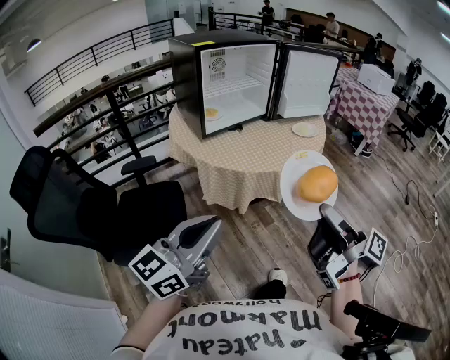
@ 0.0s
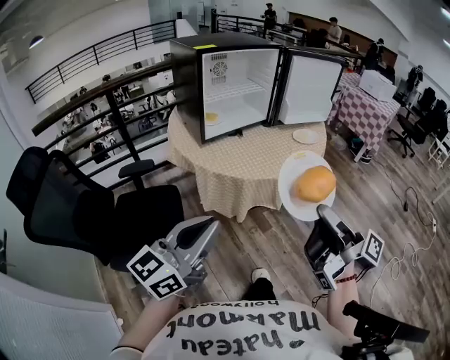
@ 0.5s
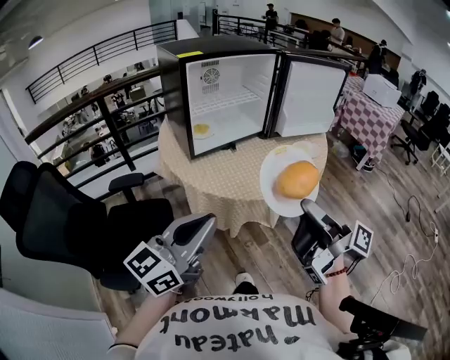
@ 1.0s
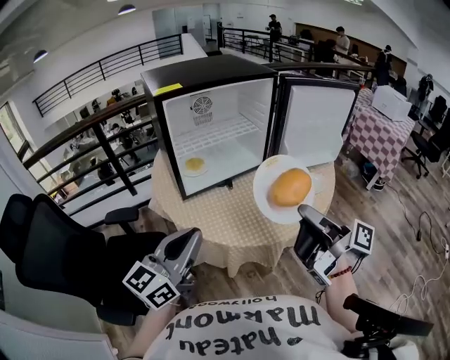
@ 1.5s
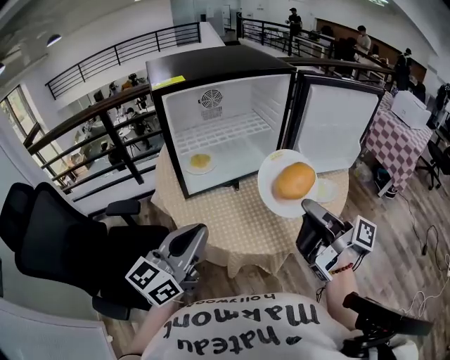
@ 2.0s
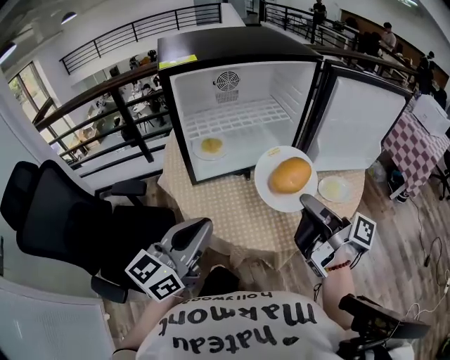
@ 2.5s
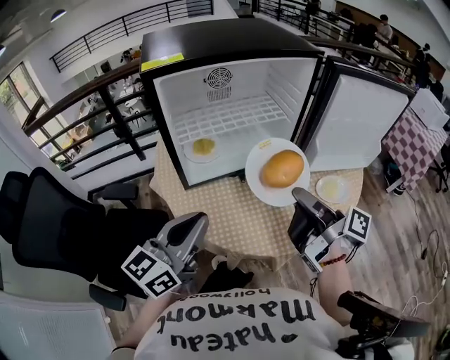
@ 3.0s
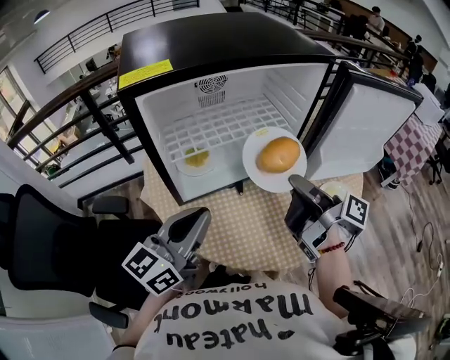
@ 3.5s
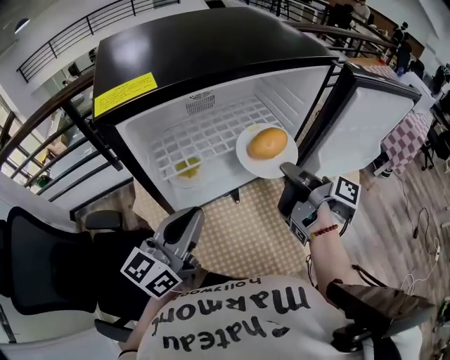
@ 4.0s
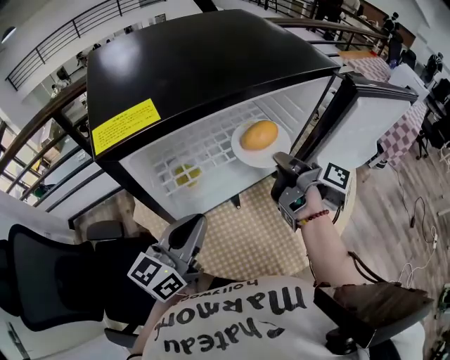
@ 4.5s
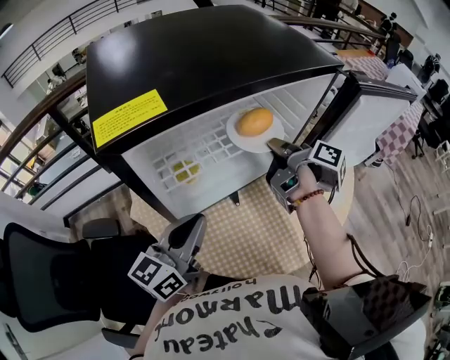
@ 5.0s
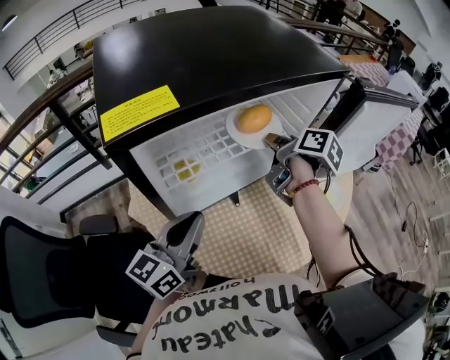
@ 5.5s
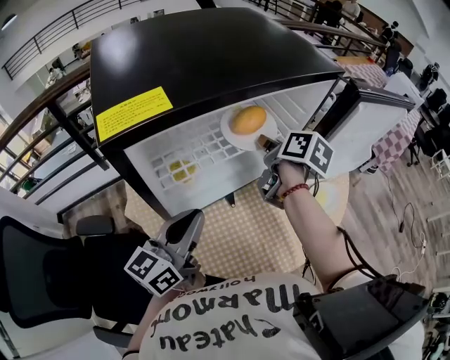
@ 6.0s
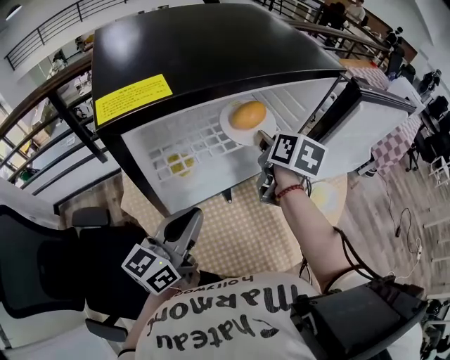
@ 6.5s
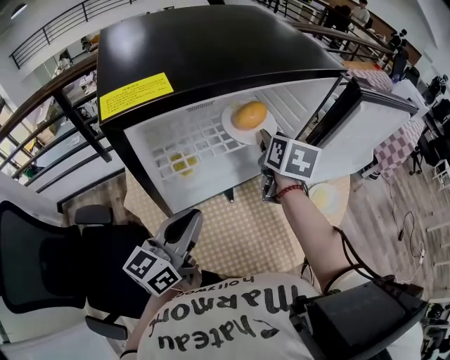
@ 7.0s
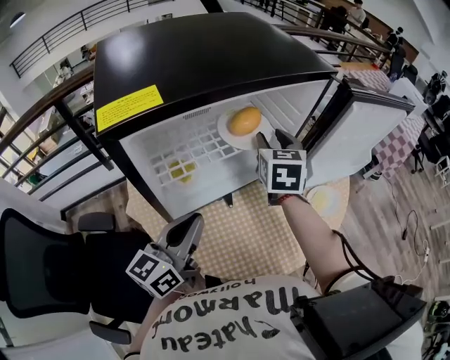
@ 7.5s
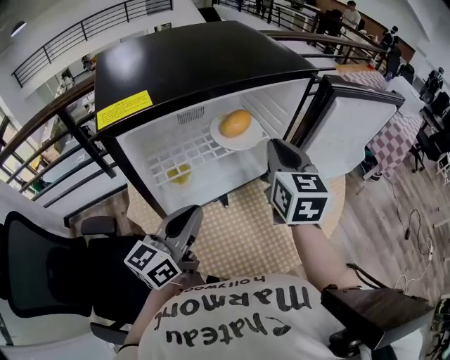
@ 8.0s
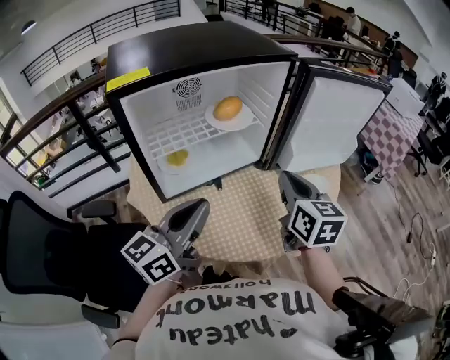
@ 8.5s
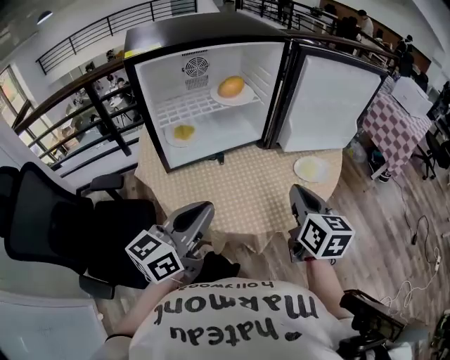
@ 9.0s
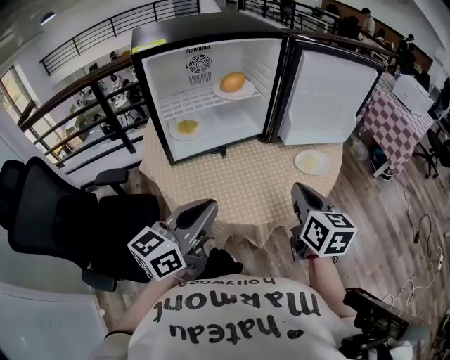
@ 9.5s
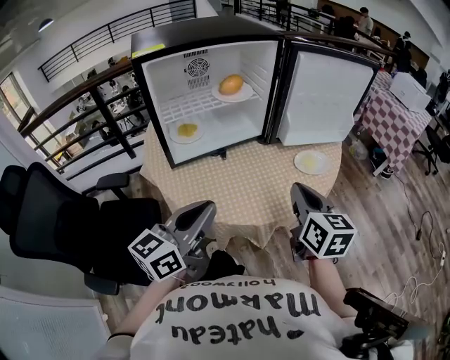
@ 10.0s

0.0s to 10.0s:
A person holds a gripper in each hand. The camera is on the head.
0.0s to 2.0s: The two grippers go some 35 cm forward.
2.0s to 4.0s: The grippers both shift forward by about 20 cm. The right gripper rotates about 20 degrees.
4.0s to 6.0s: The right gripper shifts roughly 10 cm forward, and swivels some 40 degrees.
6.0s to 8.0s: The right gripper is displaced upward and backward by about 10 cm, and rotates around the line of its fingers by roughly 50 degrees, counterclockwise from behind.
8.0s to 10.0s: Both grippers travel together backward and to the right, about 25 cm.

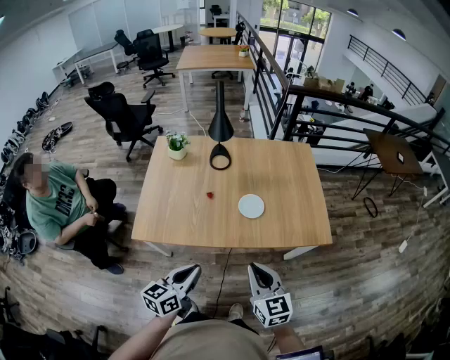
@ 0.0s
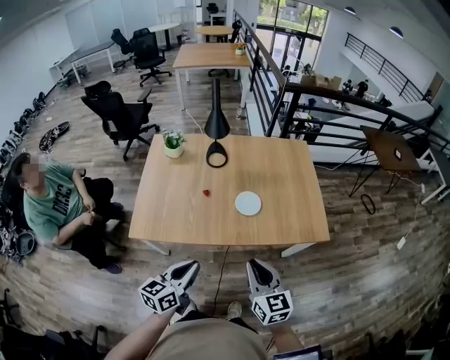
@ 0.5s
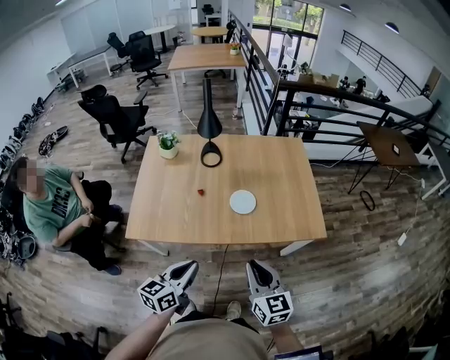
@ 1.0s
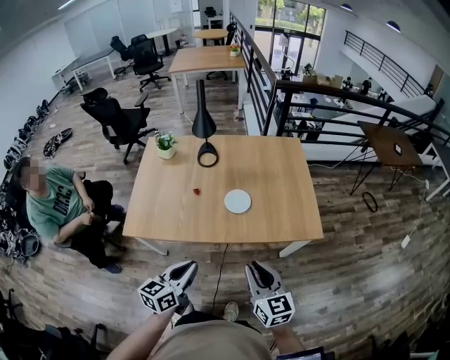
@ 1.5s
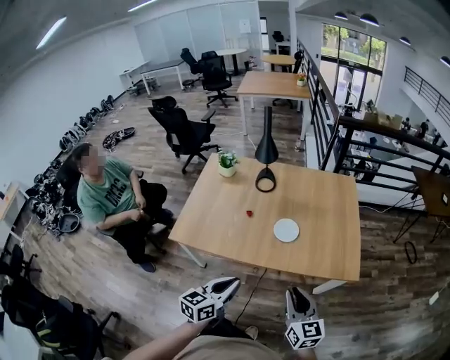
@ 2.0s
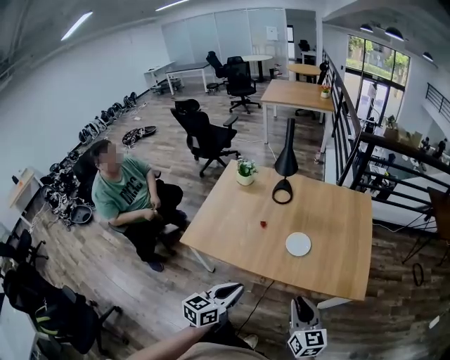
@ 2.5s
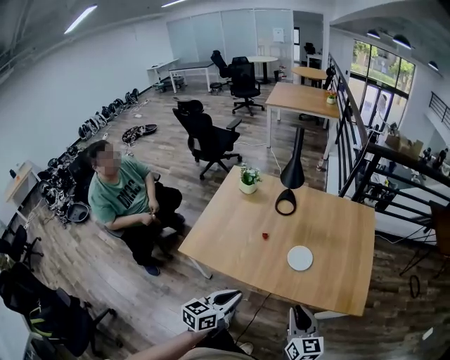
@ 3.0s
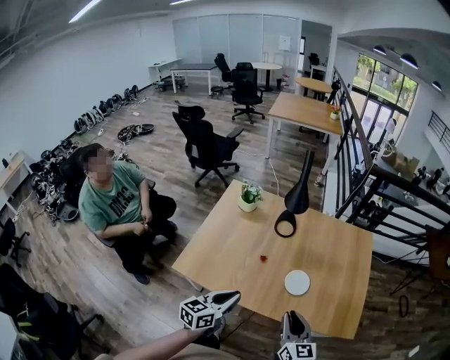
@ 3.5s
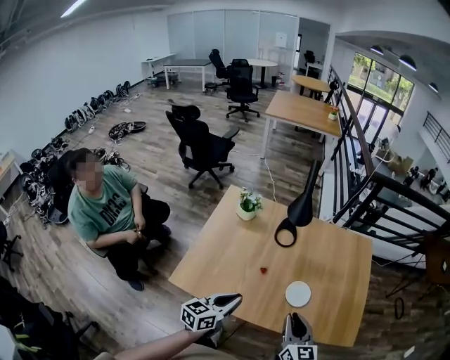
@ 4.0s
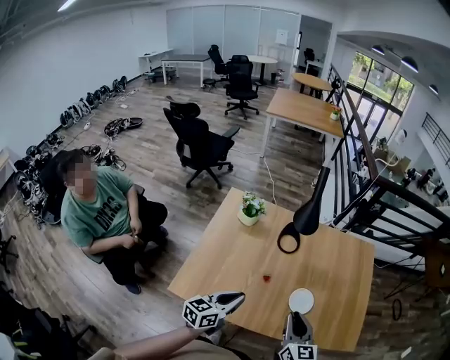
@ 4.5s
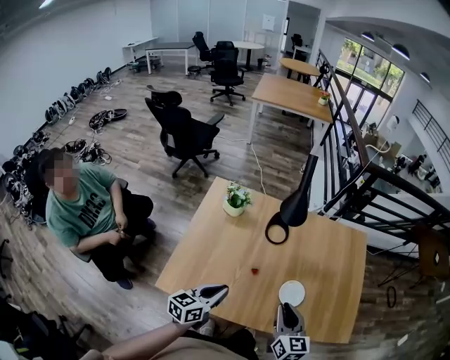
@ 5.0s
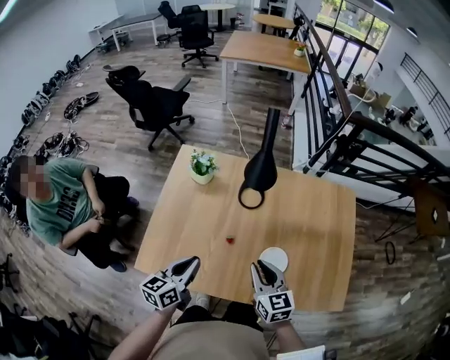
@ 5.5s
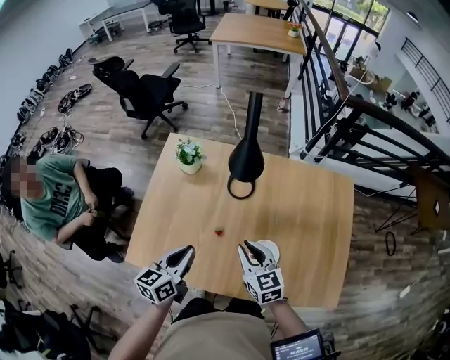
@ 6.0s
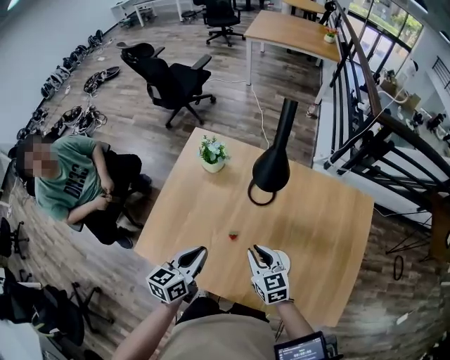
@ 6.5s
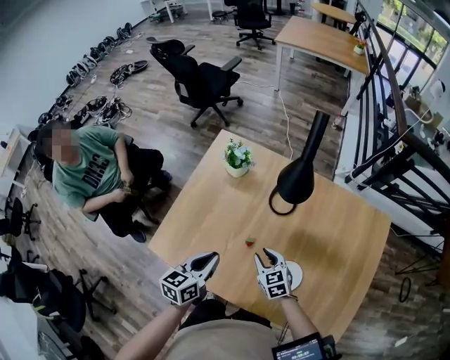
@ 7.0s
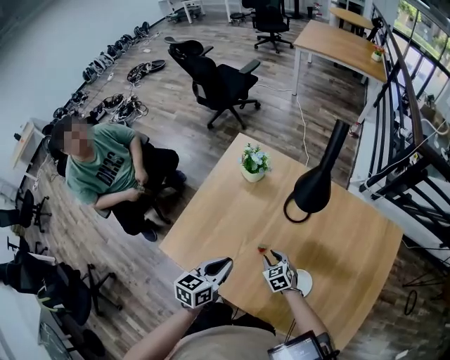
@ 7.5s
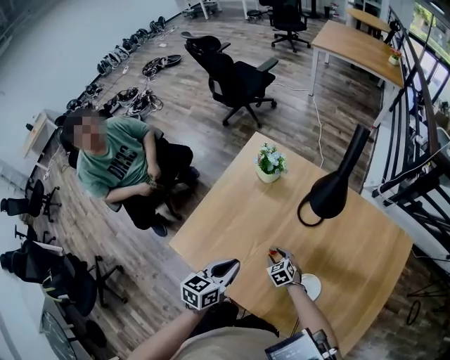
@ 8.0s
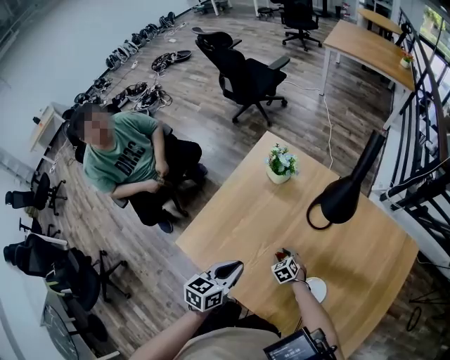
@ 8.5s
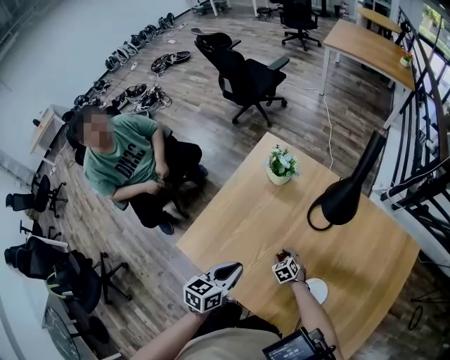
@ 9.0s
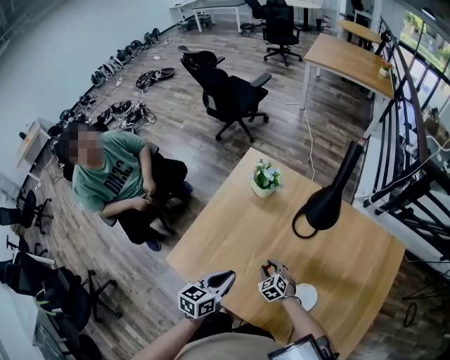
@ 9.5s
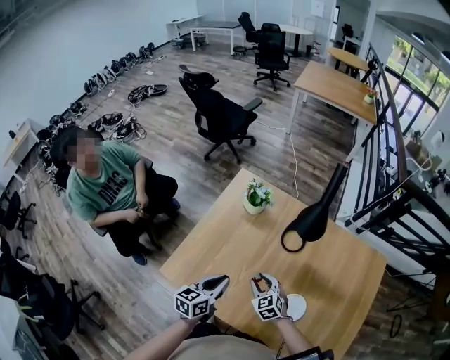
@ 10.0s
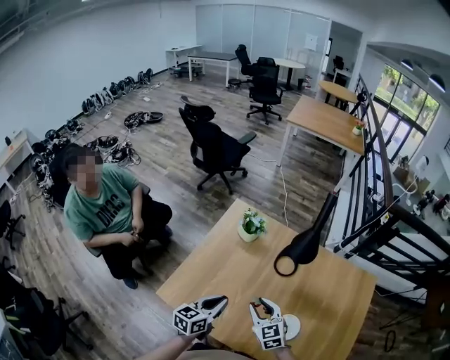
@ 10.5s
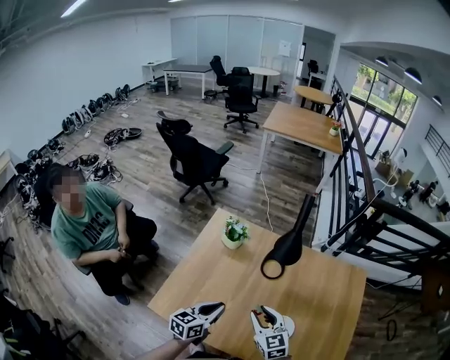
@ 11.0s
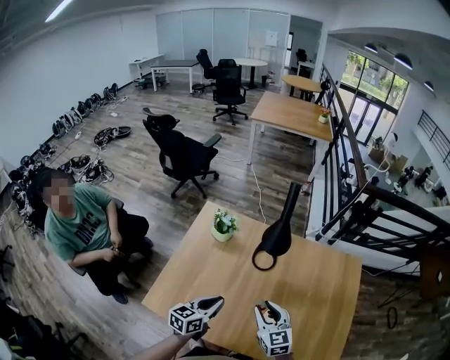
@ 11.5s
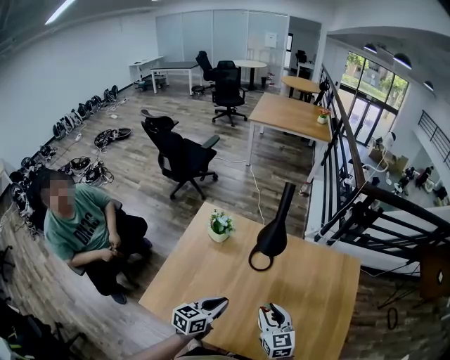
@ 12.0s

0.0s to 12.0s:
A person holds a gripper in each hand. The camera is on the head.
0.0s to 2.0s: Both grippers travel together to the right, roughly 10 cm.
2.0s to 4.0s: The two grippers go roughly 25 cm forward and to the left.
4.0s to 6.0s: Both grippers move forward, some 20 cm.
6.0s to 8.0s: The left gripper moves downward, about 5 cm. Meanwhile the right gripper goes about 30 cm downward, angles its fingers downward, by about 30 degrees, and opens its fingers.
8.0s to 10.0s: The right gripper heads upward, covering approximately 15 cm.
10.0s to 12.0s: The right gripper moves upward and to the right, roughly 20 cm, and rotates roughly 30 degrees, while the left gripper shifts roughly 10 cm to the right.

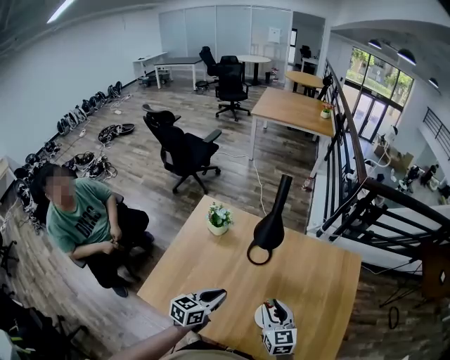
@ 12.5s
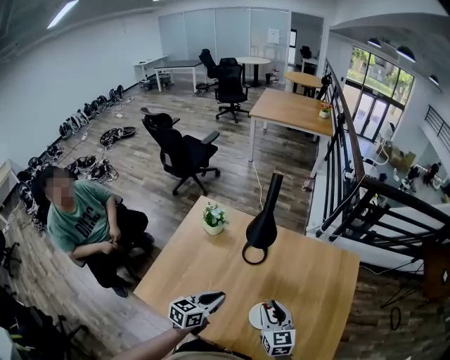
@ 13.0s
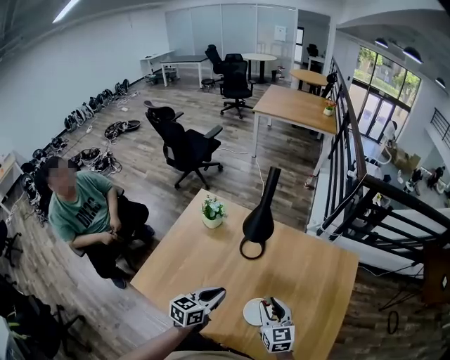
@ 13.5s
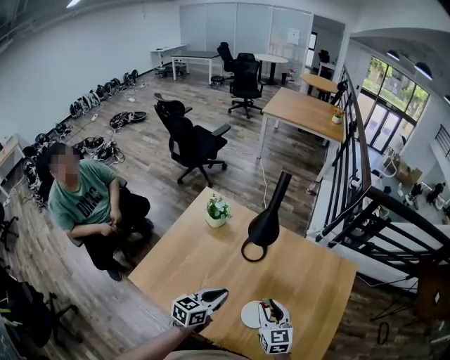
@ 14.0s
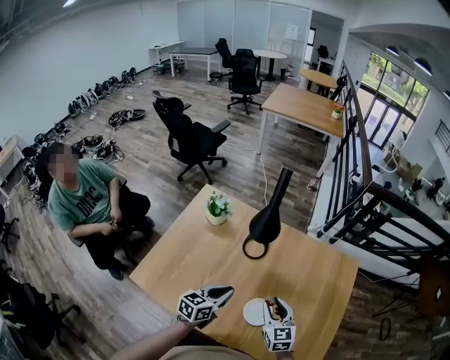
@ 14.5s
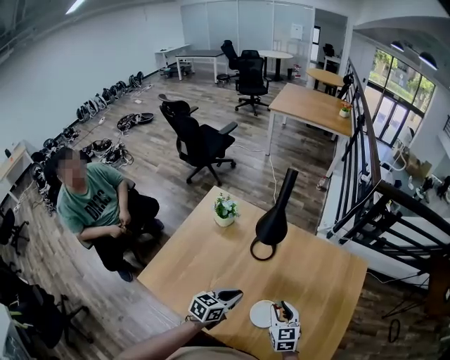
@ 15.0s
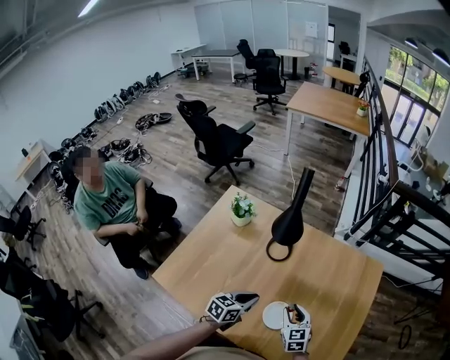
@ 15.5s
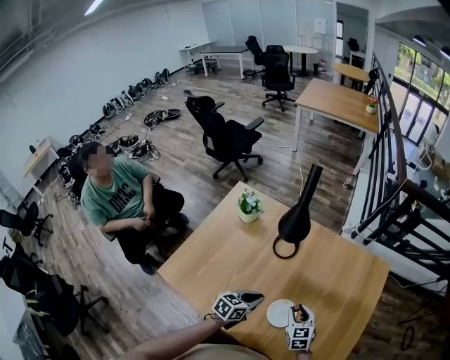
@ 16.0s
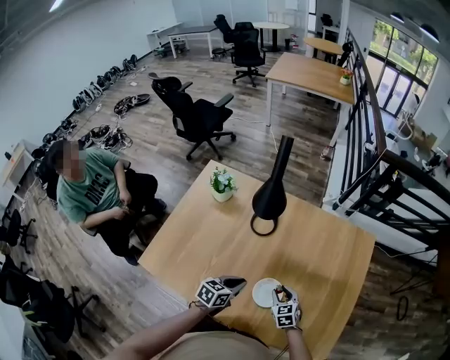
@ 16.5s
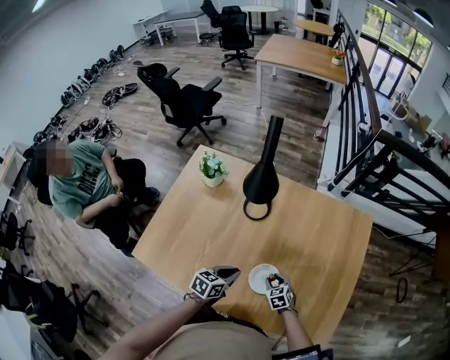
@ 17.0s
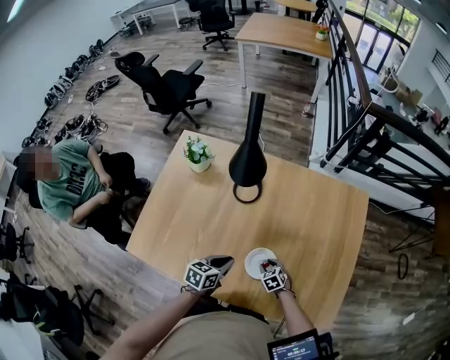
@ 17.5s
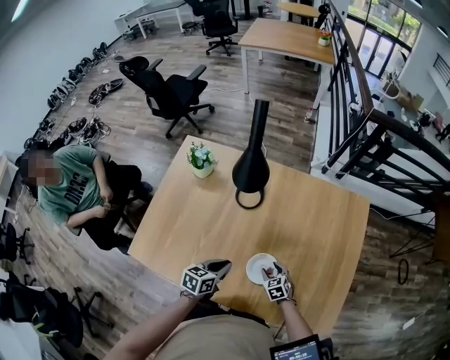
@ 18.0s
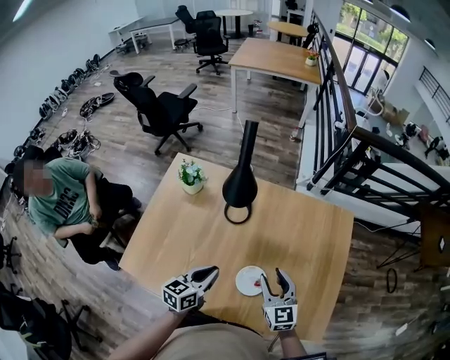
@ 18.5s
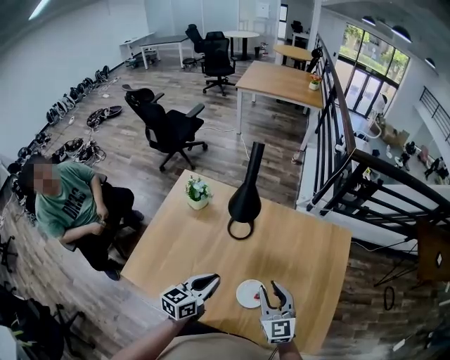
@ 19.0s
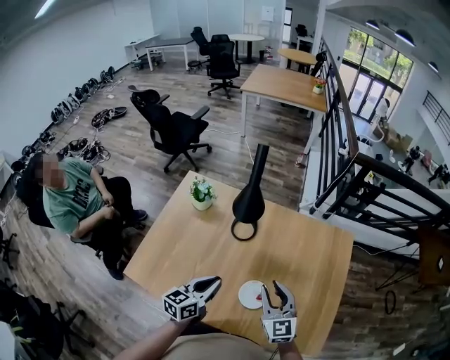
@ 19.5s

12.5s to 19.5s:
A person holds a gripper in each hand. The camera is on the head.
12.5s to 14.5s: Both grippers travel together to the right, about 5 cm.
14.5s to 16.0s: The two grippers go some 10 cm downward.
16.0s to 17.5s: The right gripper is displaced downward by about 20 cm, and changes its angle by some 30 degrees. Meanwhile the left gripper moves downward, some 5 cm.
17.5s to 19.5s: The left gripper travels upward by approximately 15 cm, and turns by roughly 30 degrees. Meanwhile the right gripper goes roughly 35 cm upward, and tilts its fingers about 50 degrees upward.
